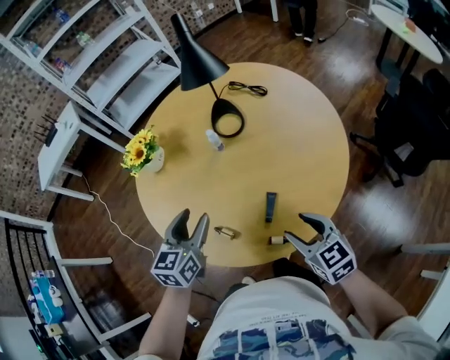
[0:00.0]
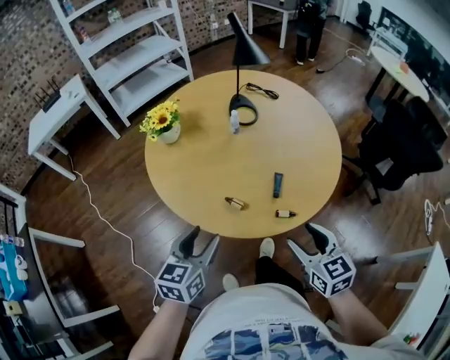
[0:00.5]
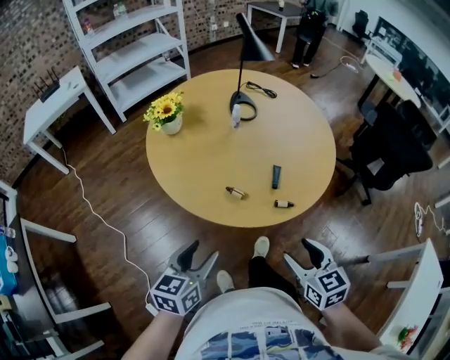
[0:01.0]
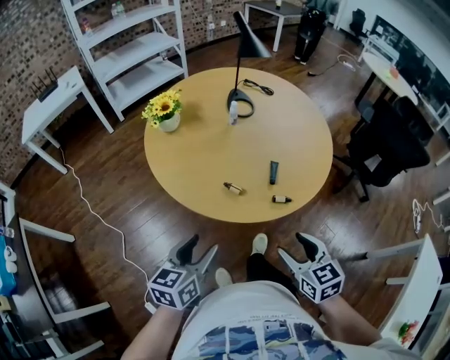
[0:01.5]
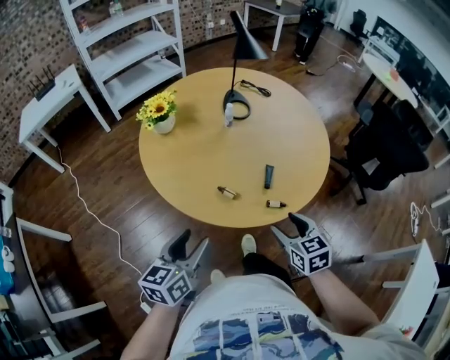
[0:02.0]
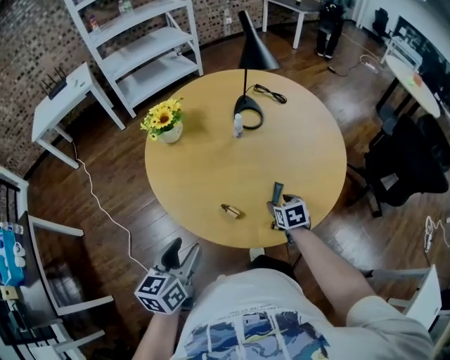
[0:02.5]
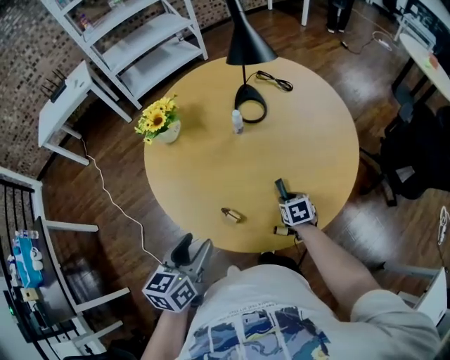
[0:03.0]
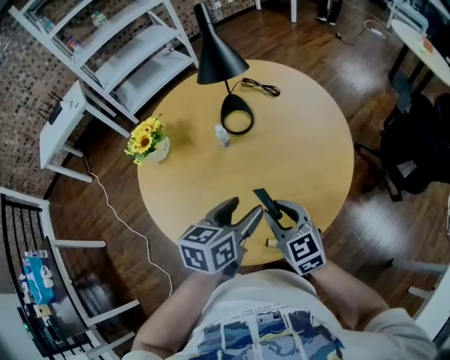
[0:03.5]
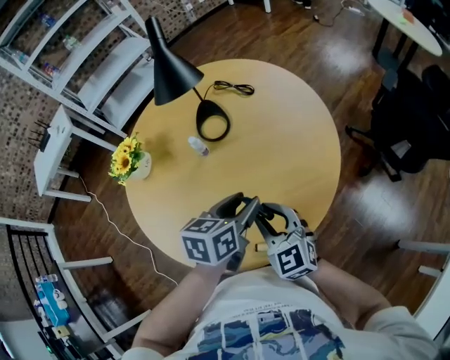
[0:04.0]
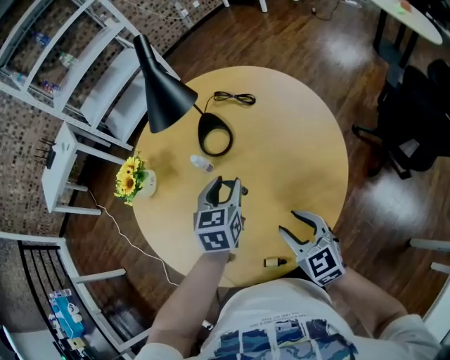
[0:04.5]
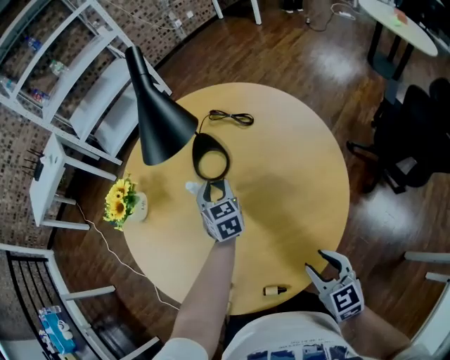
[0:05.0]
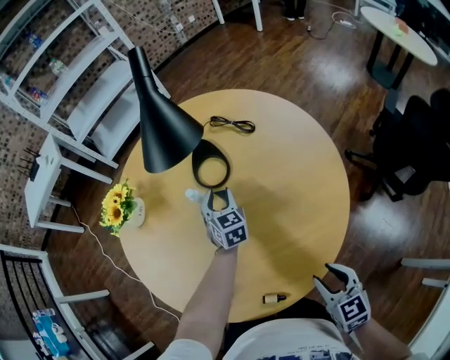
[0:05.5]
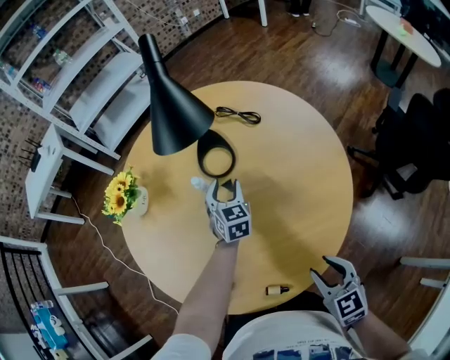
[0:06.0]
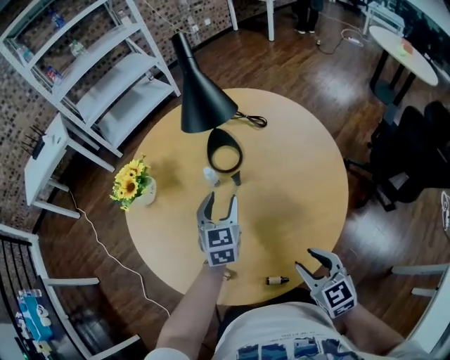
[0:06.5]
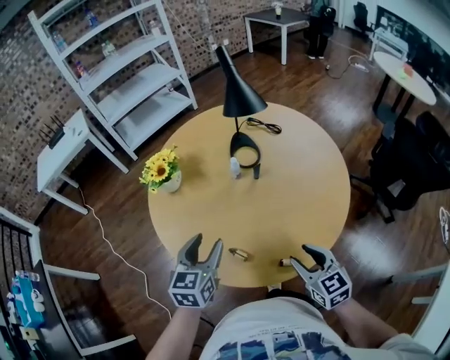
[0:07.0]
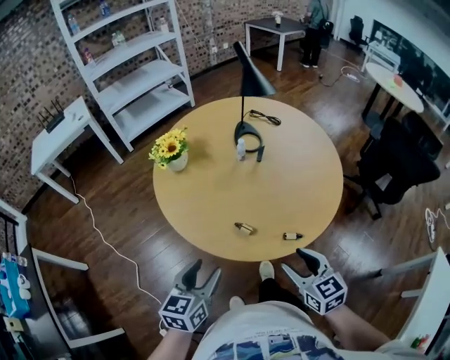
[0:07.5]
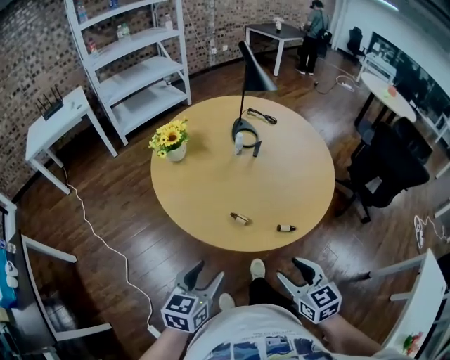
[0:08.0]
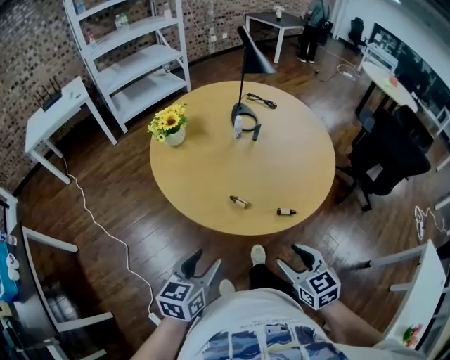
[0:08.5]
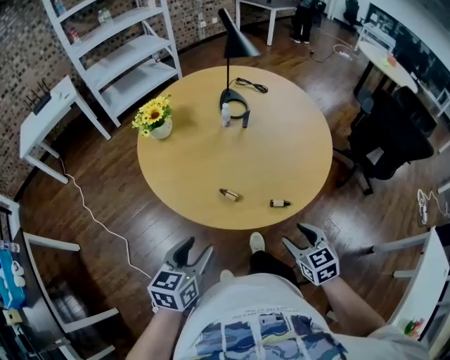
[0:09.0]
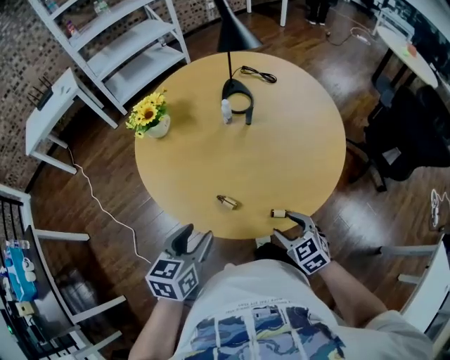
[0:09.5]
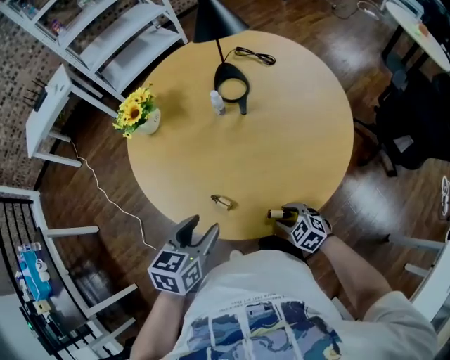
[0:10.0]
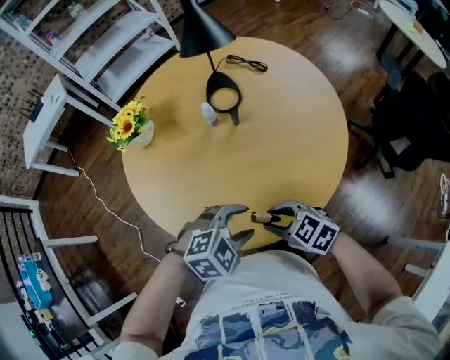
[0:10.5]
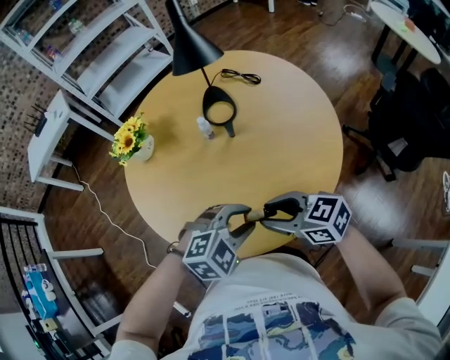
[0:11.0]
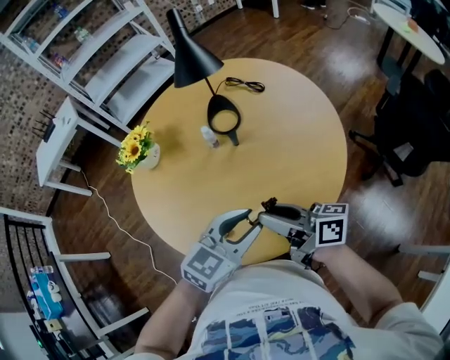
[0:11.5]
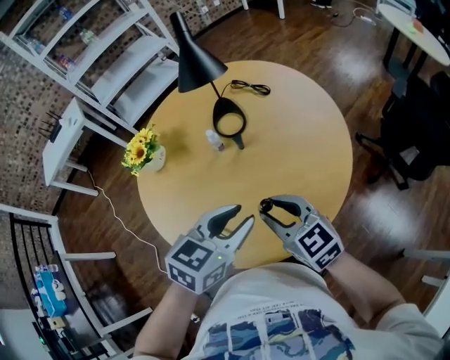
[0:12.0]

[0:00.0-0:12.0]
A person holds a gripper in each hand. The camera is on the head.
0:00.0 to 0:02.0: Both grippers move backward and to the left, some 25 cm.
0:02.0 to 0:04.0: The left gripper goes roughly 50 cm forward and to the right, and turns by some 20 degrees; the right gripper is displaced forward by some 25 cm, rotates approximately 20 degrees, and closes.
0:04.0 to 0:06.0: The right gripper shifts approximately 10 cm to the right and downward, and turns by some 20 degrees, while the left gripper is displaced forward and downward by approximately 30 cm, and rotates approximately 40 degrees.
0:06.0 to 0:08.0: The right gripper goes roughly 40 cm backward and to the left. The left gripper shifts about 60 cm backward and to the left, and turns by about 30 degrees.
0:08.0 to 0:10.0: The right gripper moves downward, forward and to the right, about 35 cm, and swivels approximately 40 degrees. Meanwhile the left gripper moves forward and to the right, about 25 cm.
0:10.0 to 0:12.0: The right gripper shifts about 25 cm upward, and tips its fingers upward by roughly 30 degrees. The left gripper shifts by some 20 cm, and changes its angle by approximately 20 degrees.

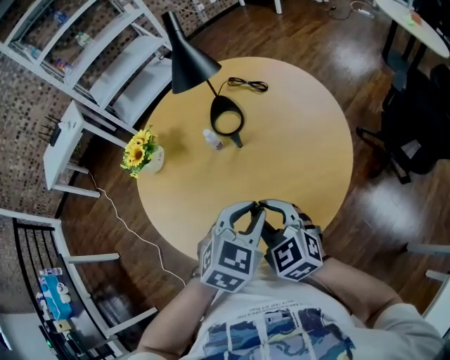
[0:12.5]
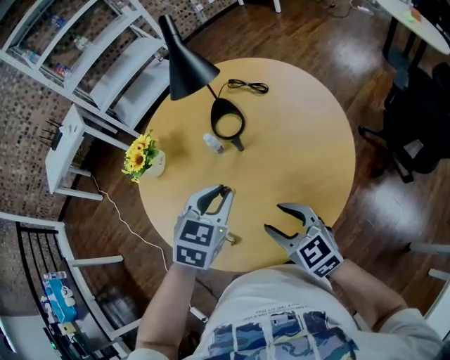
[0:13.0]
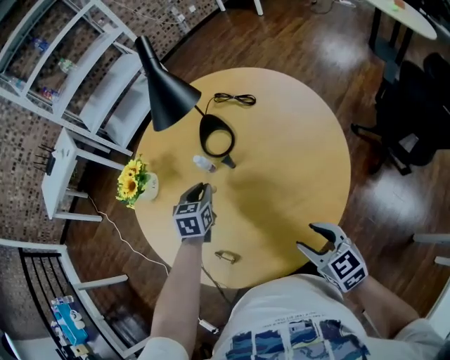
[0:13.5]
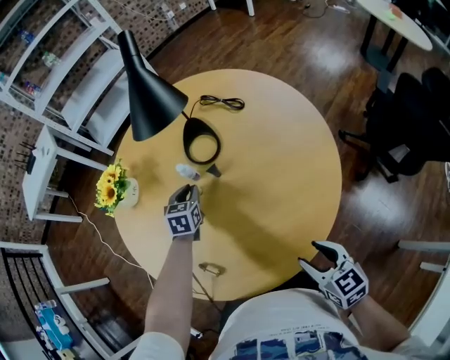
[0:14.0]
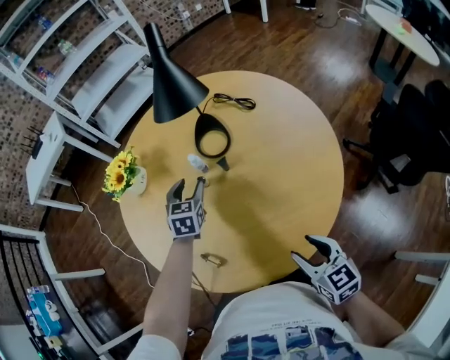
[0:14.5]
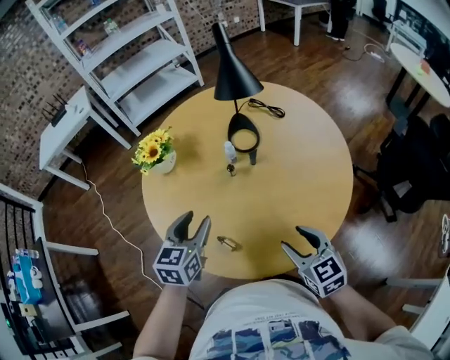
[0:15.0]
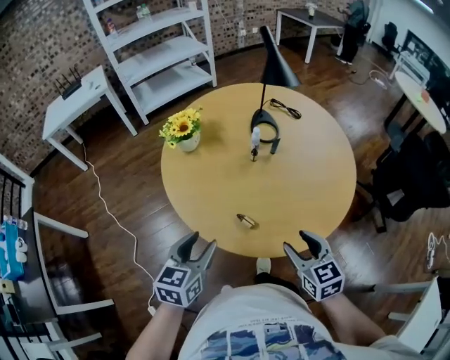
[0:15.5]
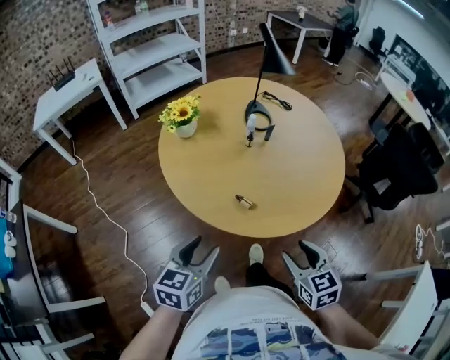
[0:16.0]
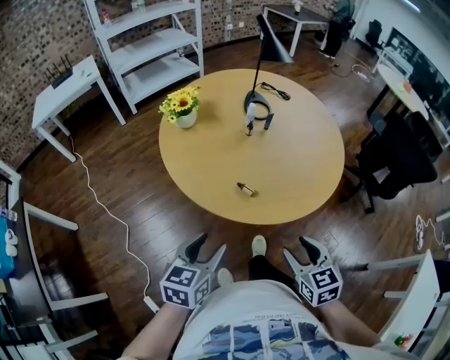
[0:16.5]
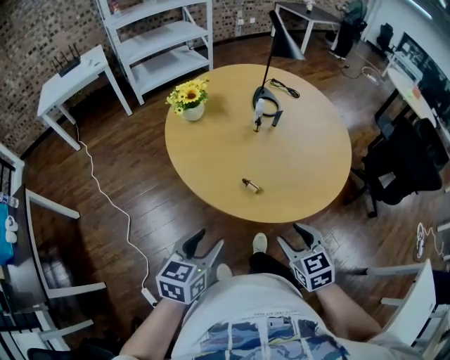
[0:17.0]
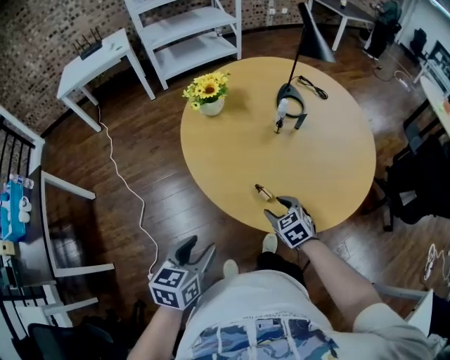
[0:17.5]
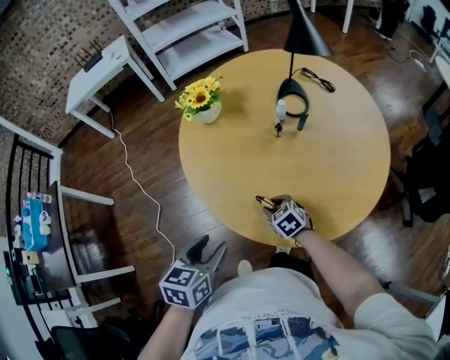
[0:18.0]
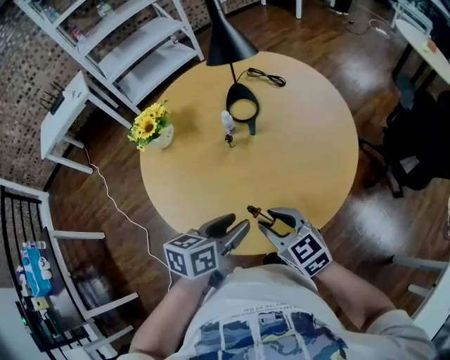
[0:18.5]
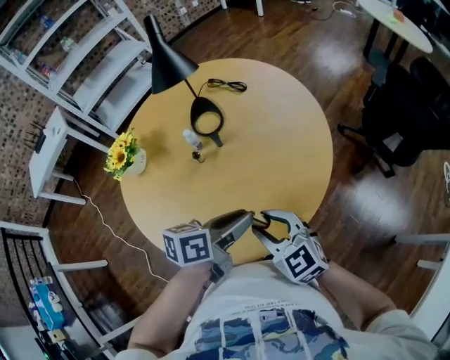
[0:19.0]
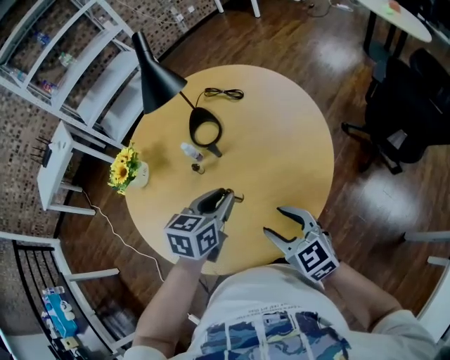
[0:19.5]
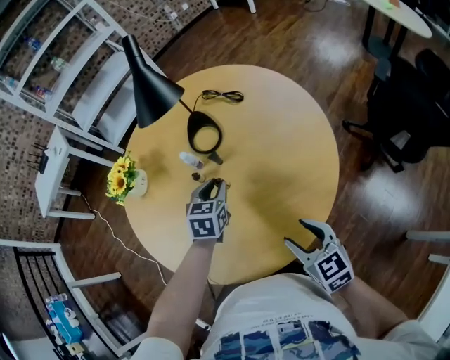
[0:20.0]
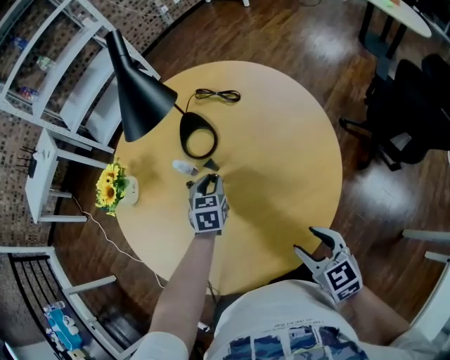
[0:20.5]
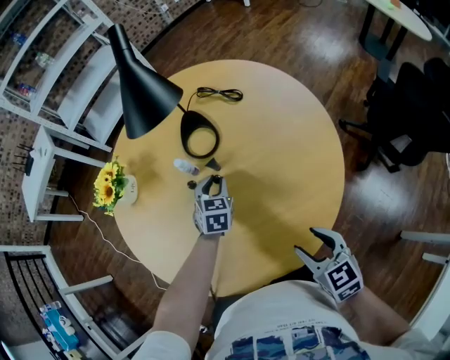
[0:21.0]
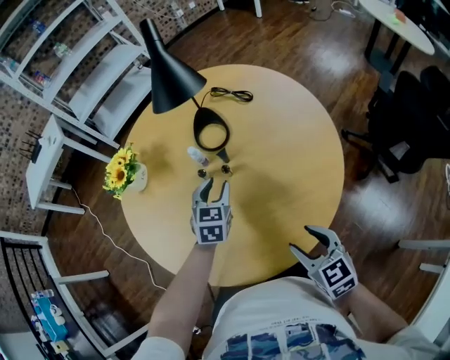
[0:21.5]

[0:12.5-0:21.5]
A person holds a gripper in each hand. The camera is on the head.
0:12.5 to 0:14.5: The right gripper moves to the right and downward, roughly 15 cm, swivels approximately 20 degrees, and opens its fingers. The left gripper is displaced forward, downward and to the left by roughly 30 cm, changes its angle by roughly 30 degrees, and opens.
0:14.5 to 0:17.0: The left gripper moves backward and to the left, roughly 60 cm, and turns by approximately 30 degrees, while the right gripper is displaced to the left and backward by approximately 35 cm.
0:17.0 to 0:19.5: The right gripper moves some 20 cm downward and comes back. The left gripper shifts by some 50 cm.
0:19.5 to 0:21.5: The left gripper shifts about 15 cm forward, downward and to the left, and rotates some 20 degrees.

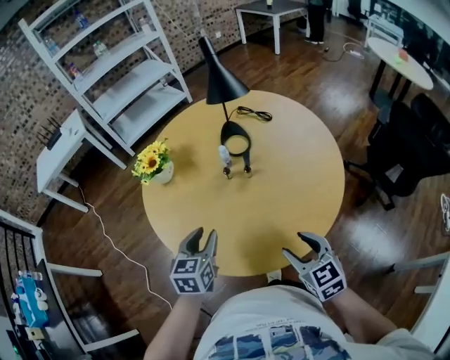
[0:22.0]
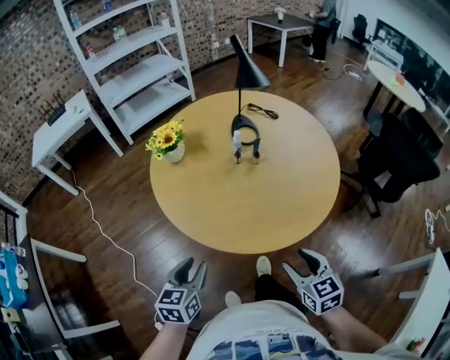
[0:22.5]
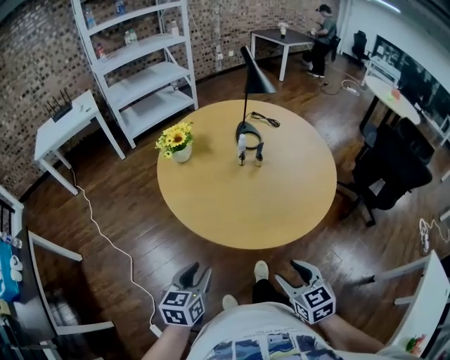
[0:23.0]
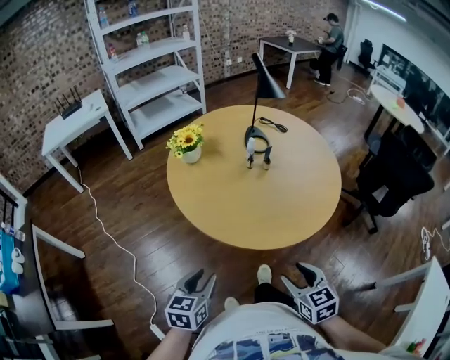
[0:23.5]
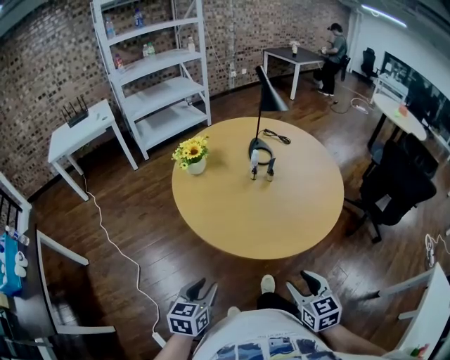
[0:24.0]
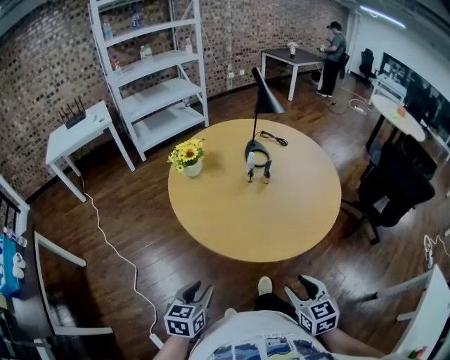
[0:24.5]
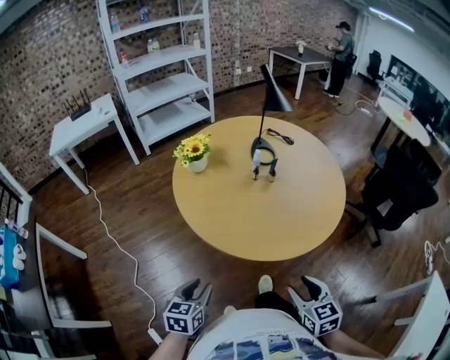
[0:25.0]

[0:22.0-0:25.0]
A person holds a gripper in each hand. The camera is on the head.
0:22.0 to 0:23.5: The two grippers go roughly 30 cm backward and to the left.
0:23.5 to 0:25.0: The grippers make only small movements.

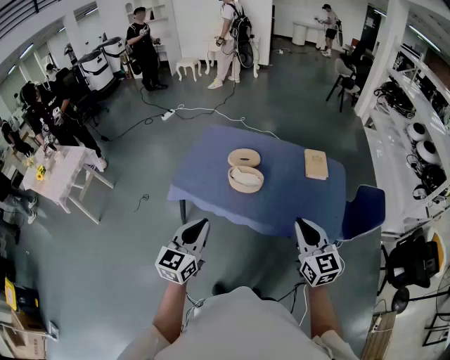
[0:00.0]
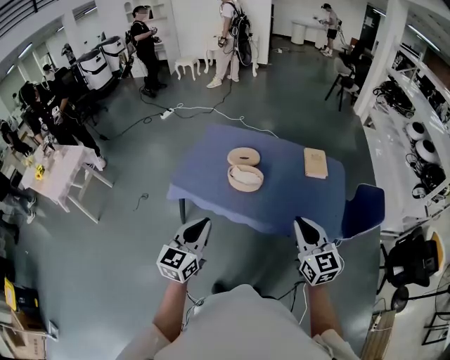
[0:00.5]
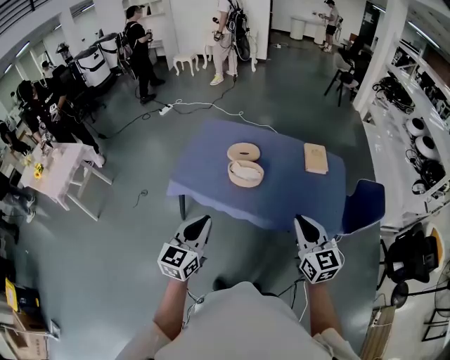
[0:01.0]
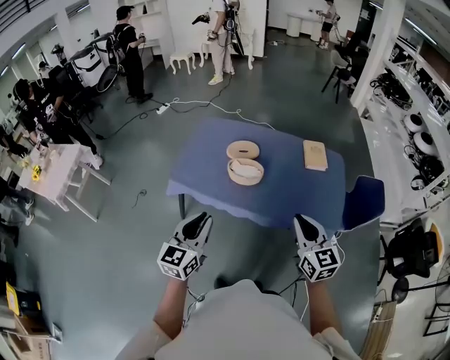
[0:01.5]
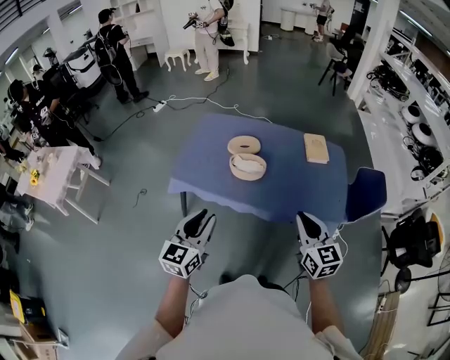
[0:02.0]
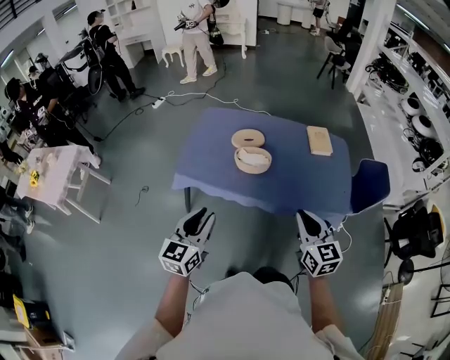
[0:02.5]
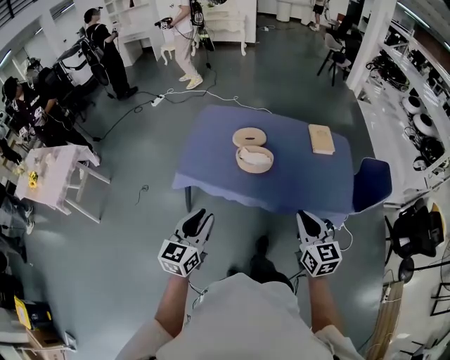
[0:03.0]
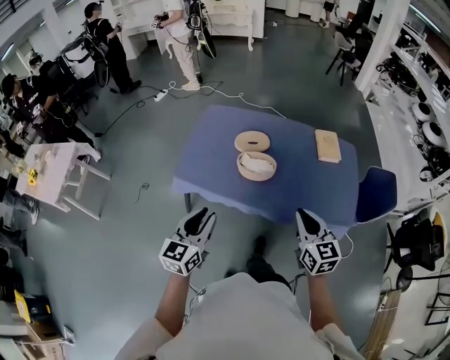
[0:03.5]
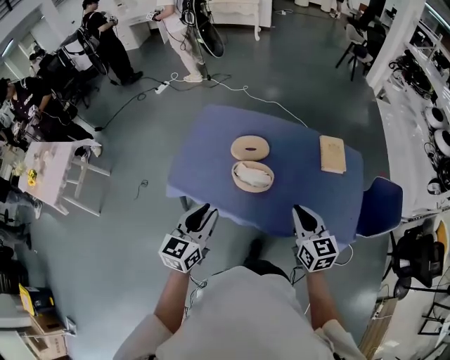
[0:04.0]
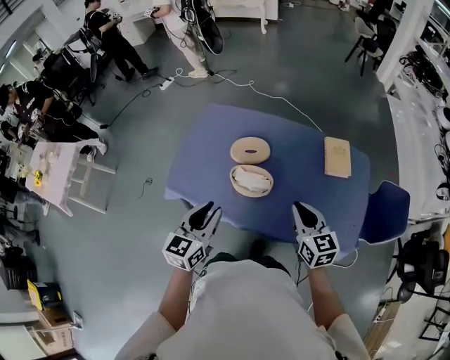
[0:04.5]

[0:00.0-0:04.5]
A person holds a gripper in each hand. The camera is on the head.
0:00.0 to 0:02.0: The left gripper opens up.
0:02.0 to 0:04.5: The two grippers go about 25 cm forward.
